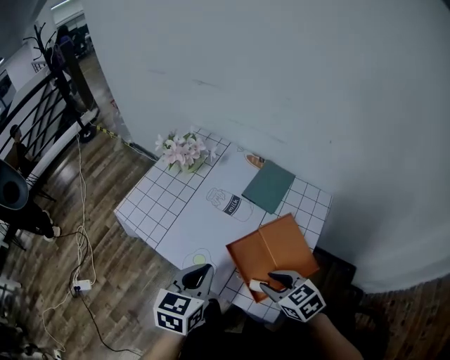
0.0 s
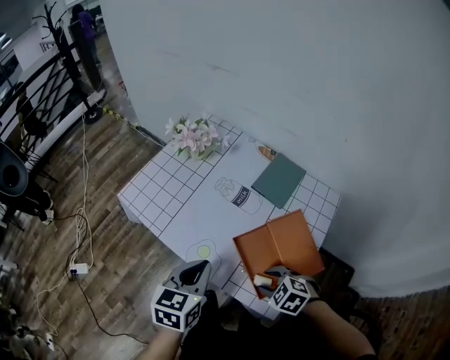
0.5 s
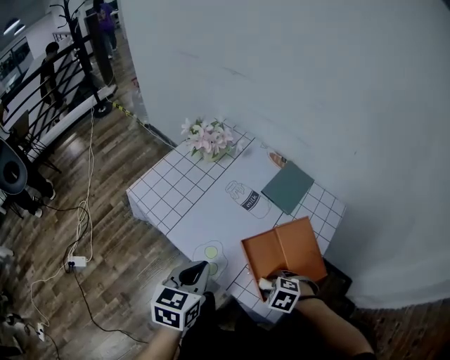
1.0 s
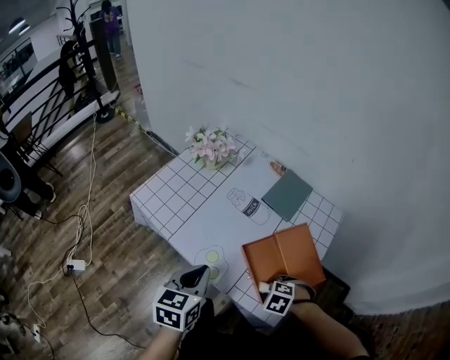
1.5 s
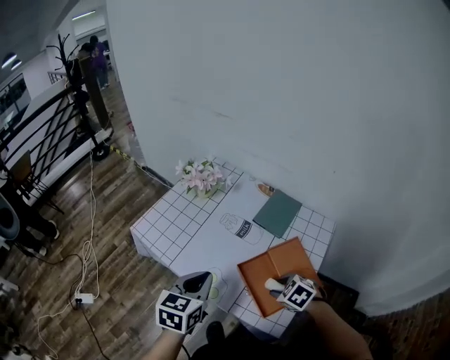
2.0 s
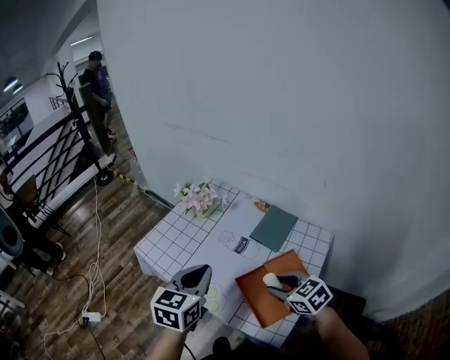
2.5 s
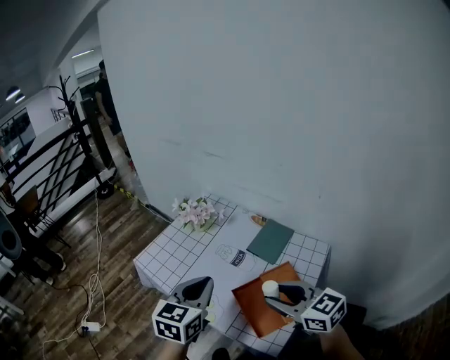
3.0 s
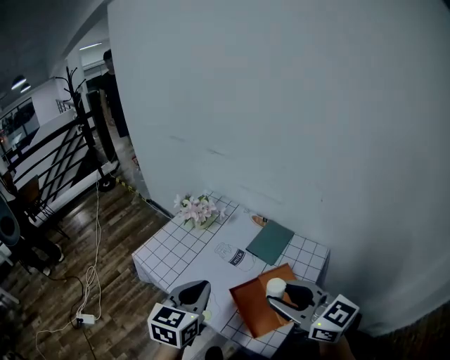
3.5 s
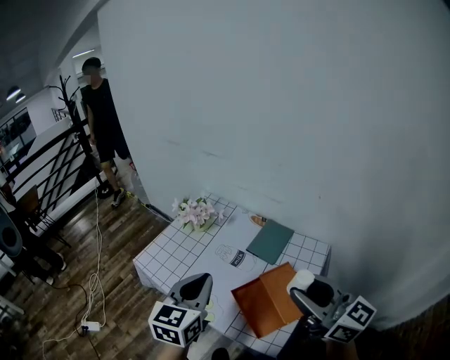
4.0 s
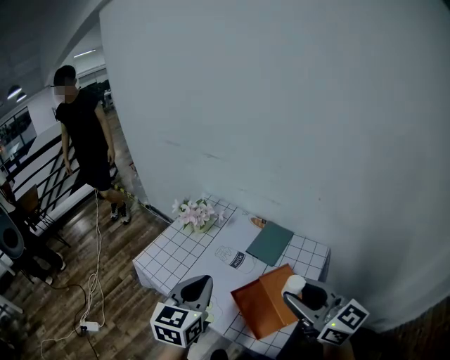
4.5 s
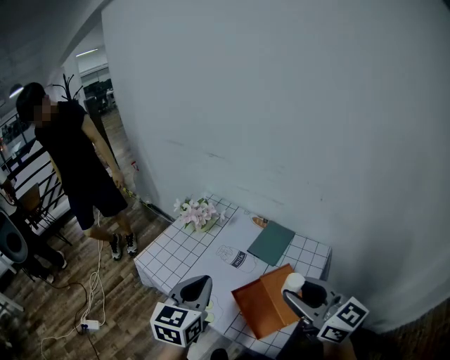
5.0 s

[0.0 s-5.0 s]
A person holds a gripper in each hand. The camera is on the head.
0.0 to 2.5 s: Both grippers travel together upward, about 10 cm.
2.5 to 5.0 s: The right gripper is displaced upward by about 20 cm, and points its fingers about 40 degrees further upward; the left gripper changes place by some 5 cm.

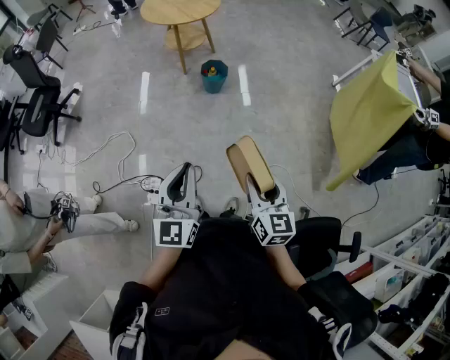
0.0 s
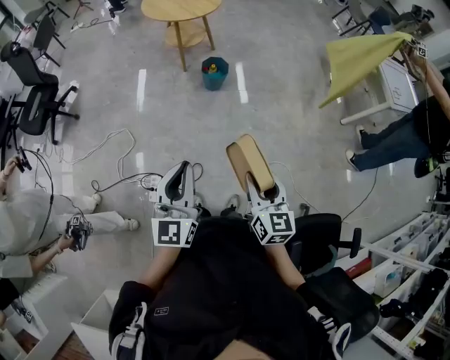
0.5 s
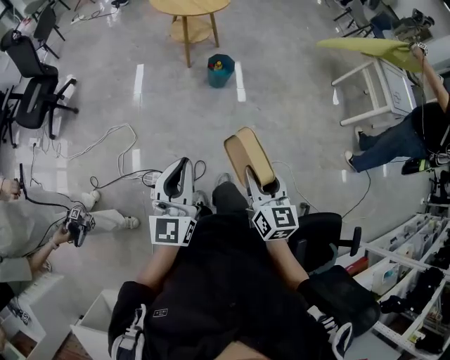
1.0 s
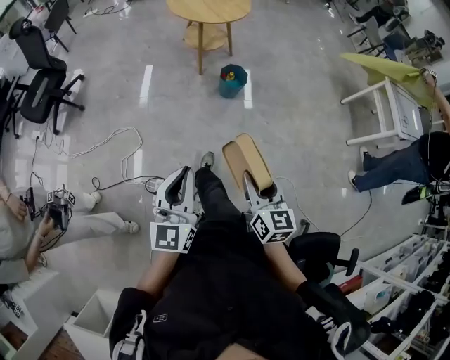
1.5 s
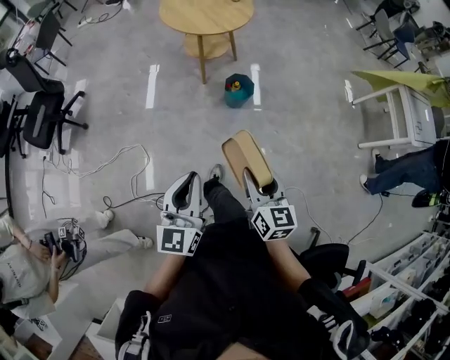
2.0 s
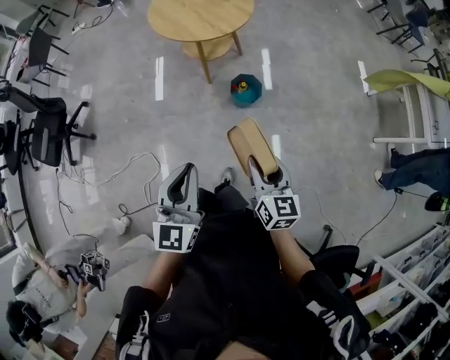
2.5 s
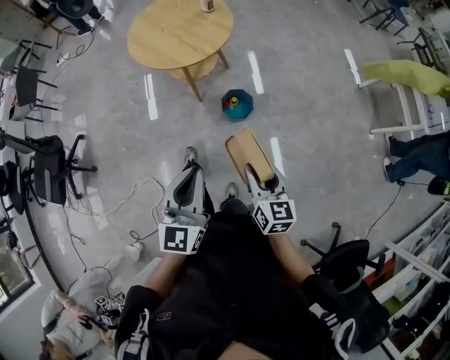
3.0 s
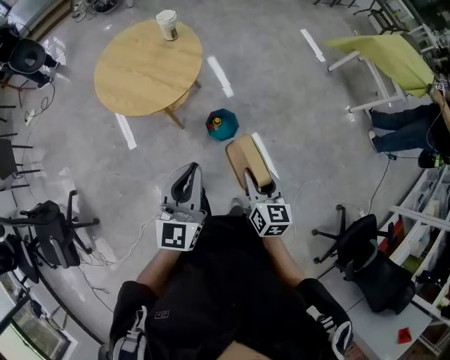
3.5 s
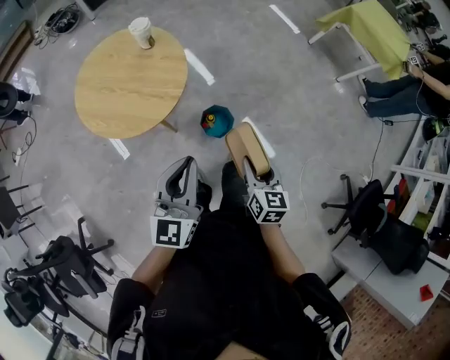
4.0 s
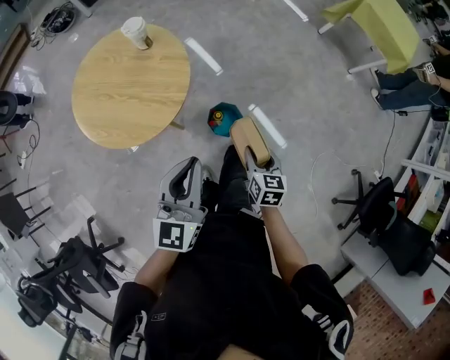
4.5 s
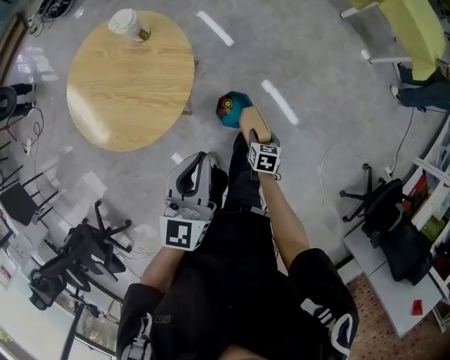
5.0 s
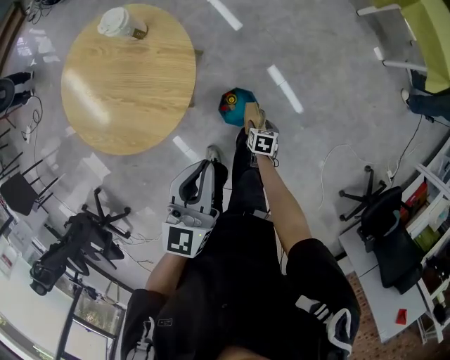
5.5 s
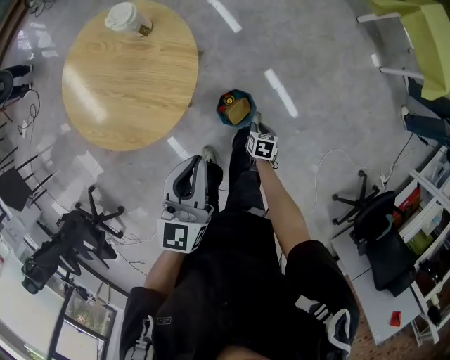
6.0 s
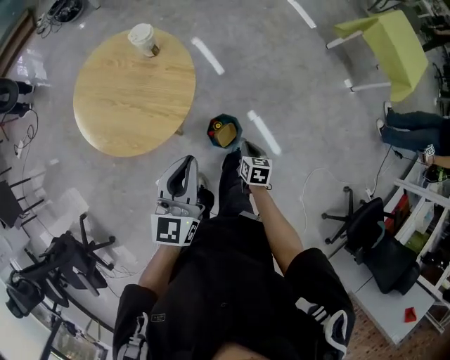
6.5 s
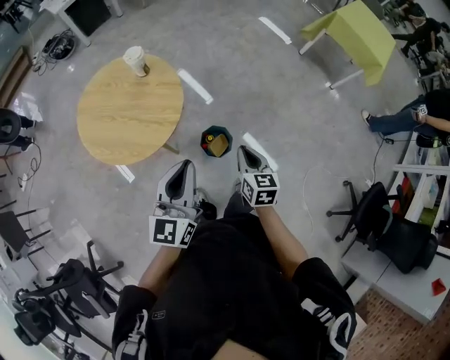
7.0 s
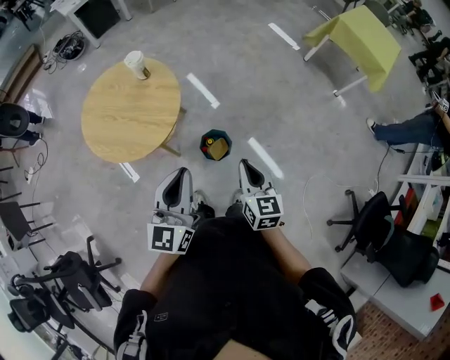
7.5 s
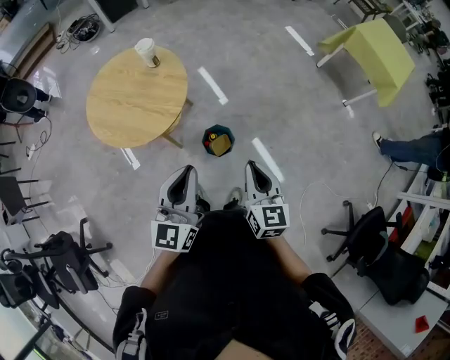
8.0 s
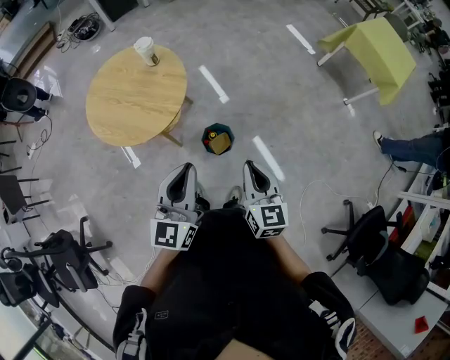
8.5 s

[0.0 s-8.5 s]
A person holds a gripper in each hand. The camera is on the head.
0.0 to 2.0 s: Both grippers travel together forward and to the left, some 30 cm.
2.0 to 4.0 s: The pair of grippers is taken approximately 50 cm. The right gripper turns by approximately 40 degrees; the left gripper swivels approximately 40 degrees.
4.0 to 6.5 s: The left gripper shifts some 10 cm forward. The right gripper heads downward and forward, covering about 25 cm, rotates some 20 degrees, and closes.
6.5 to 8.5 s: The right gripper travels upward and backward by about 30 cm, and tips its fingers upward by approximately 30 degrees; the left gripper goes about 15 cm backward, to the right and upward.

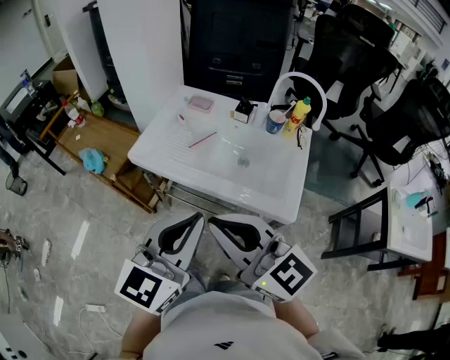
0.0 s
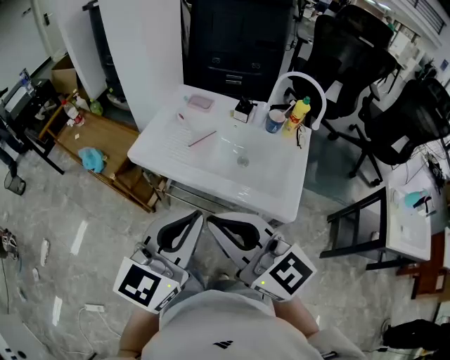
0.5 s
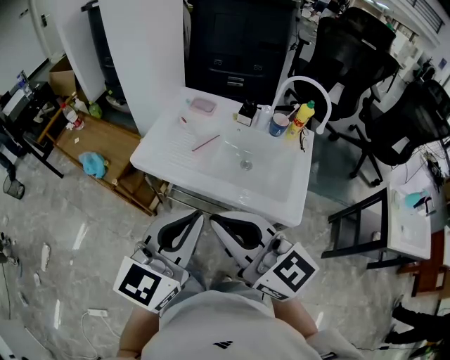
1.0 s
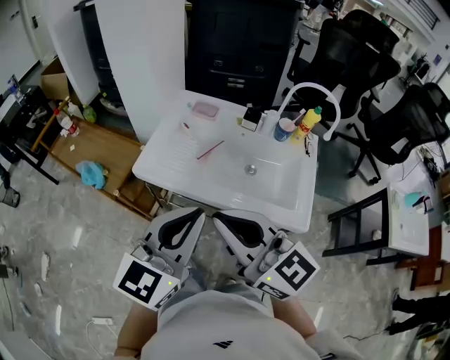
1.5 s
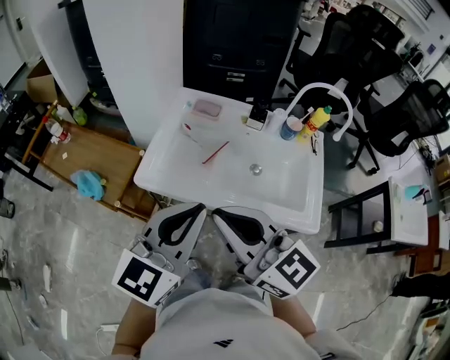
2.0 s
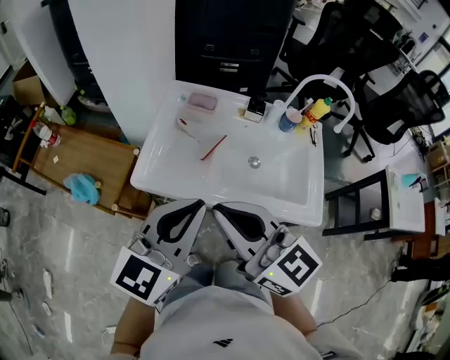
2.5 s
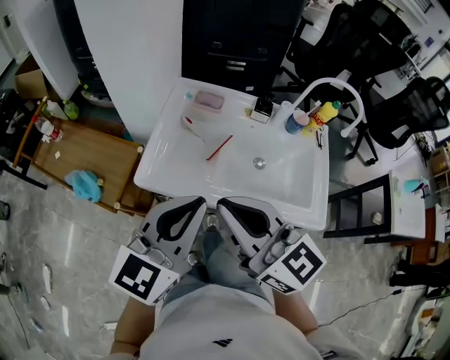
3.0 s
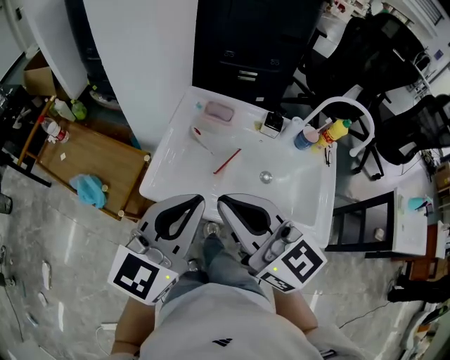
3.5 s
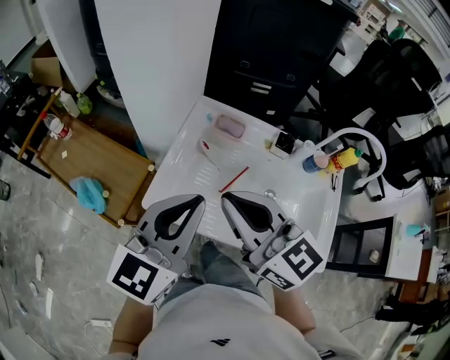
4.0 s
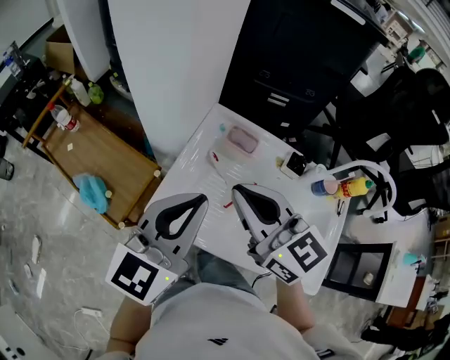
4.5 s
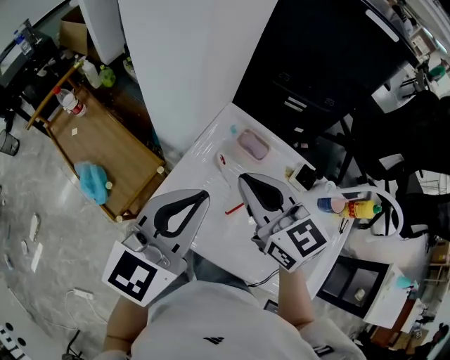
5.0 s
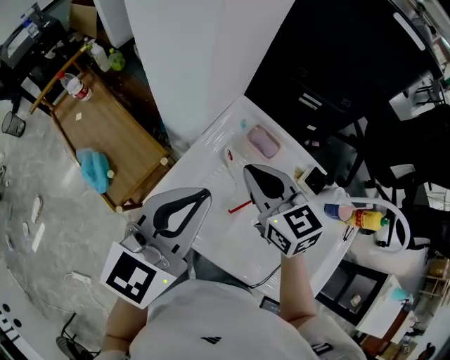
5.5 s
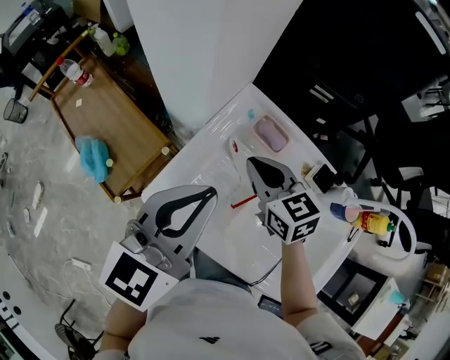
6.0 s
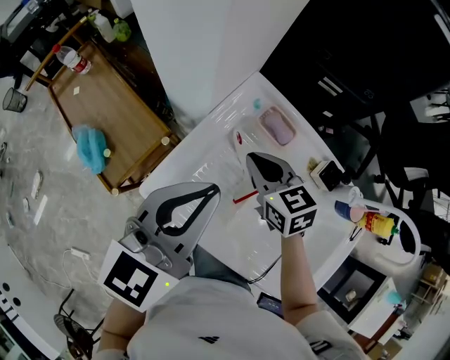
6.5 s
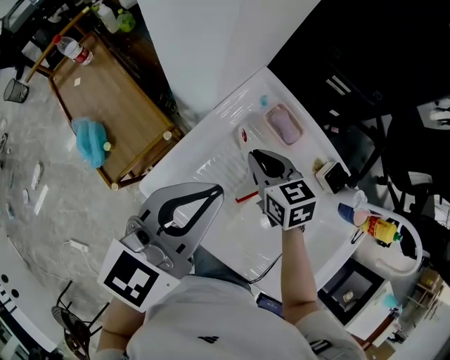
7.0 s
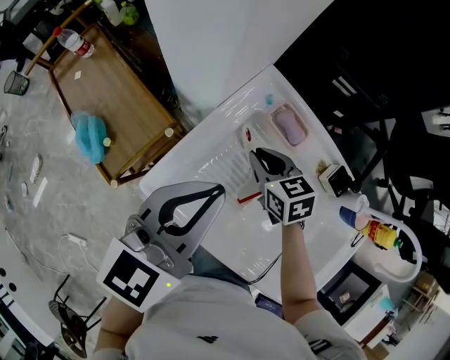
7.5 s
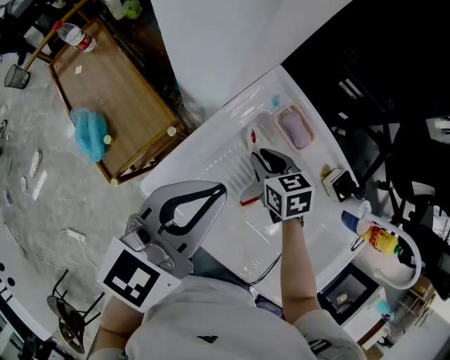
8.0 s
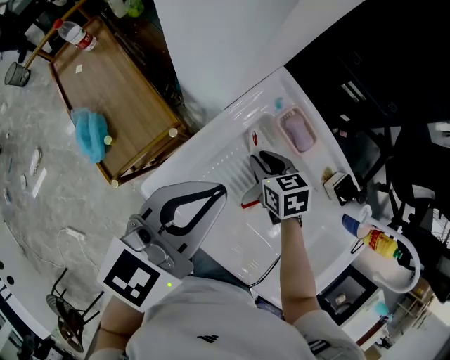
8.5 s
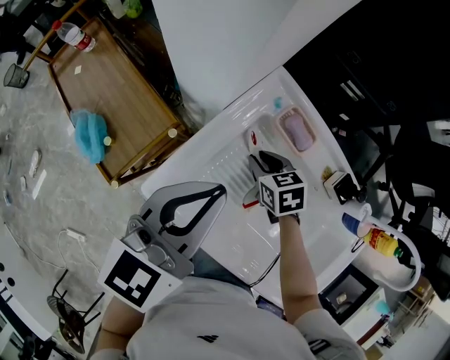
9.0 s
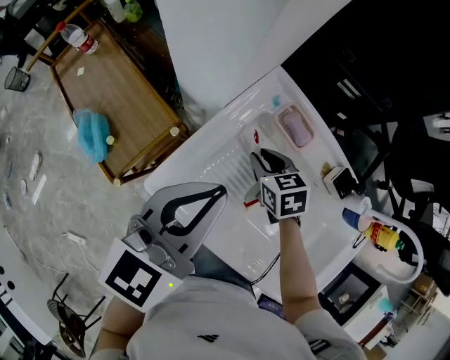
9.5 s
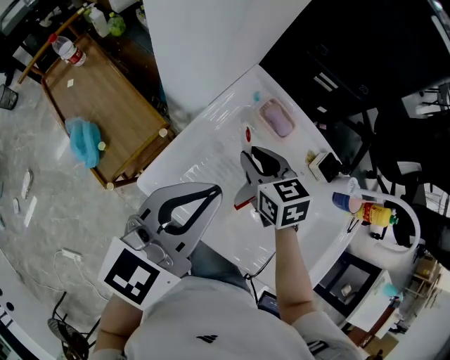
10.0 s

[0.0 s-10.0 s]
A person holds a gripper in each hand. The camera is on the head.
0.0 to 2.0 s: Both grippers move forward and to the left, approximately 15 cm.
2.0 to 4.0 s: Both grippers move forward, roughly 15 cm.
4.0 to 6.0 s: The right gripper travels forward and downward by approximately 25 cm, and swivels some 30 degrees; the left gripper travels forward by about 10 cm.
6.0 to 8.0 s: The right gripper heads downward, covering about 15 cm, while the left gripper moves roughly 5 cm.
8.0 to 10.0 s: The right gripper travels upward by roughly 10 cm.

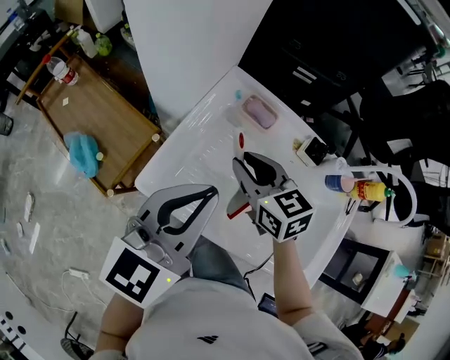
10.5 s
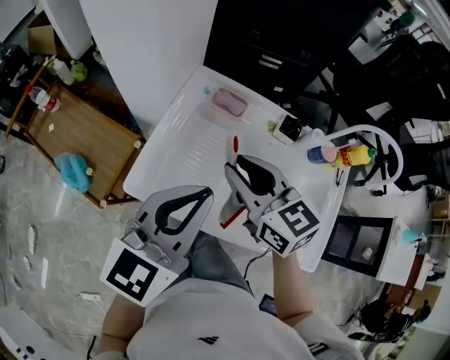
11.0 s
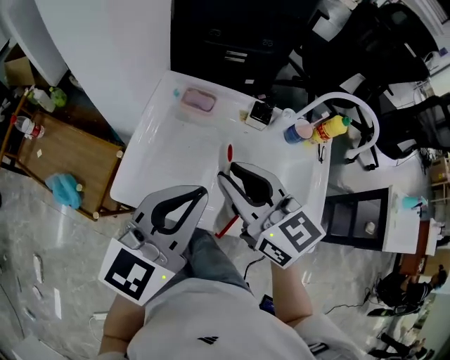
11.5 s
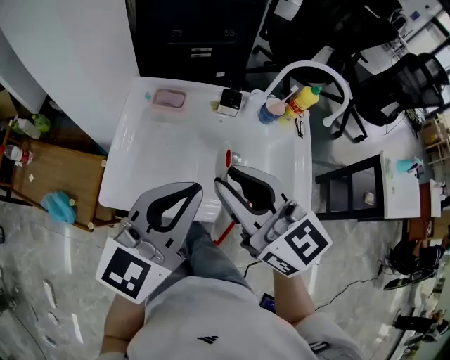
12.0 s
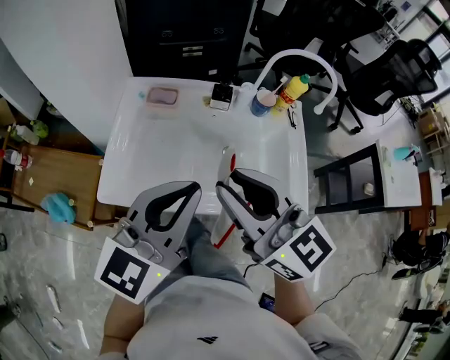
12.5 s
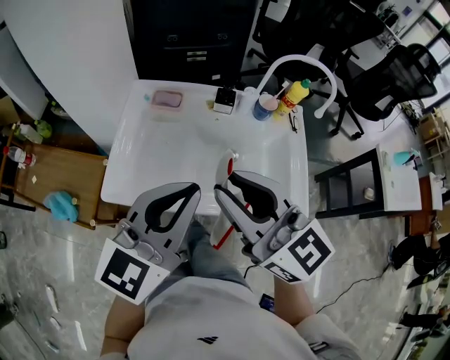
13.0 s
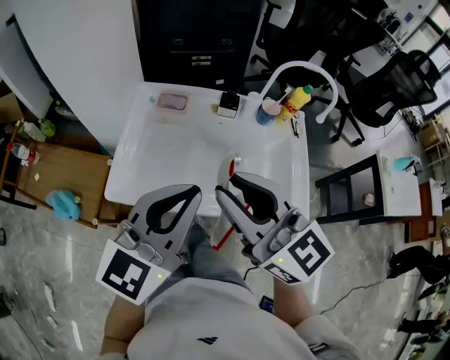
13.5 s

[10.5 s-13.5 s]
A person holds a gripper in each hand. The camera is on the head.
10.5 to 12.0 s: The right gripper is displaced backward, upward and to the right by approximately 25 cm, and swivels roughly 30 degrees. The left gripper is displaced to the right and backward by roughly 15 cm, and turns by about 20 degrees.
12.0 to 13.5 s: The right gripper goes approximately 5 cm backward.
